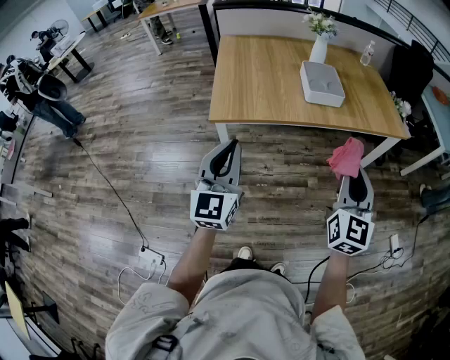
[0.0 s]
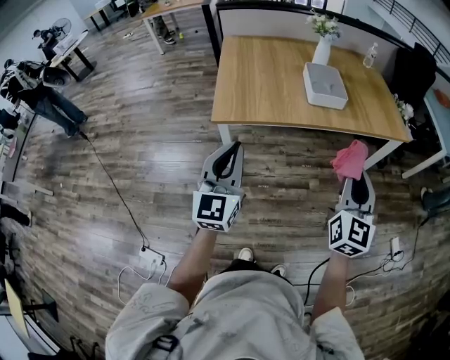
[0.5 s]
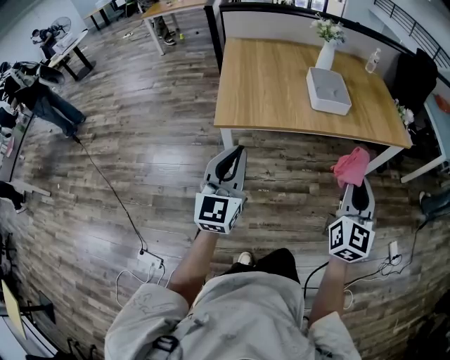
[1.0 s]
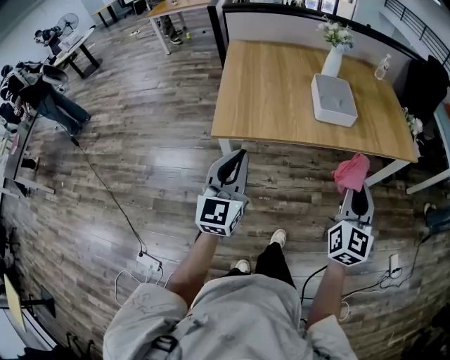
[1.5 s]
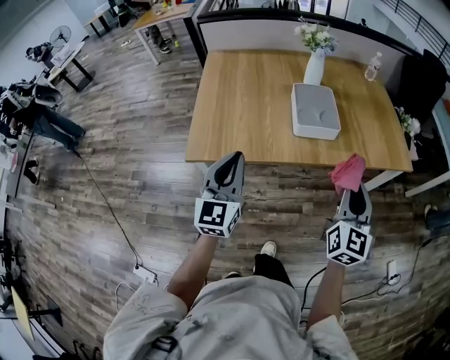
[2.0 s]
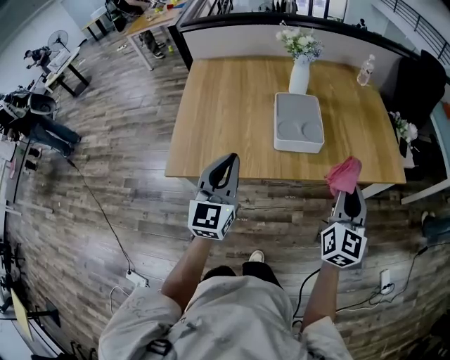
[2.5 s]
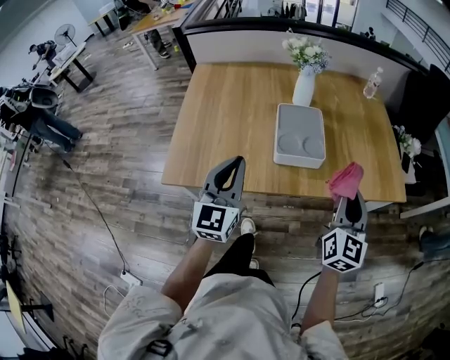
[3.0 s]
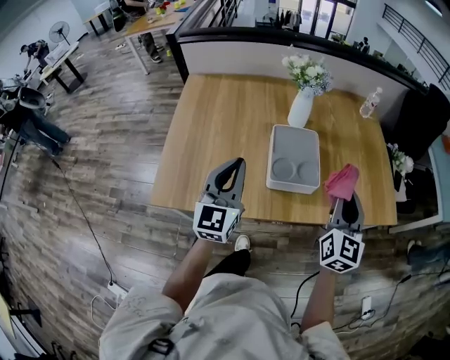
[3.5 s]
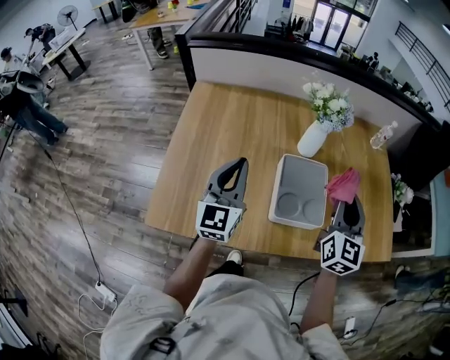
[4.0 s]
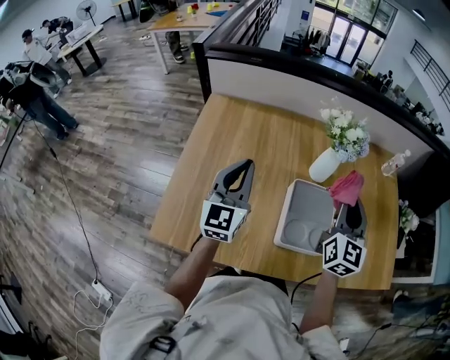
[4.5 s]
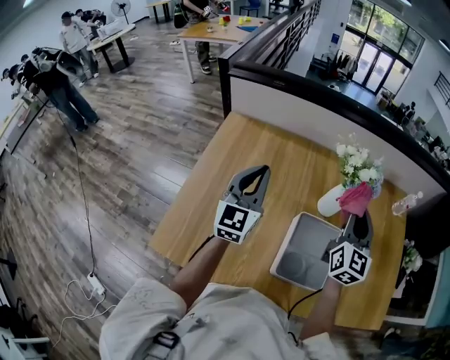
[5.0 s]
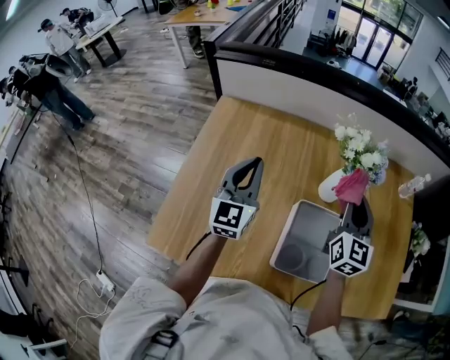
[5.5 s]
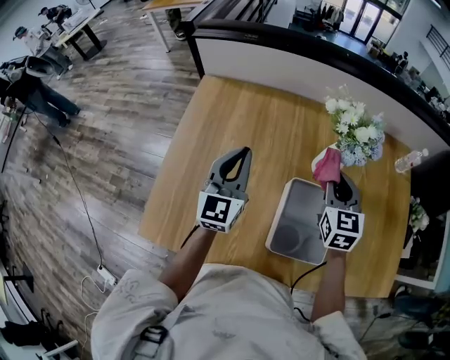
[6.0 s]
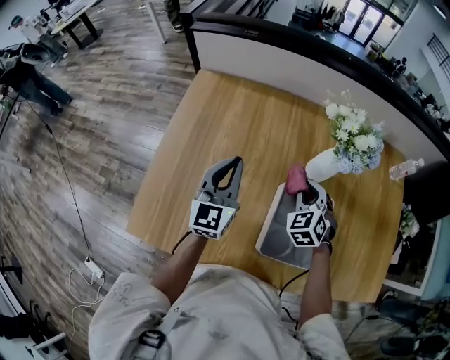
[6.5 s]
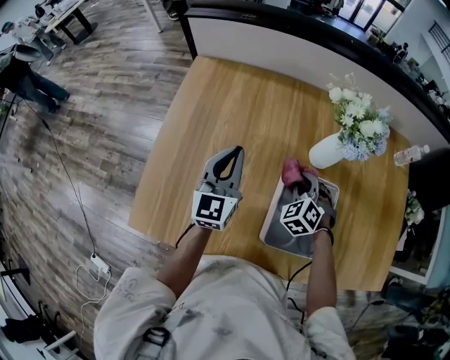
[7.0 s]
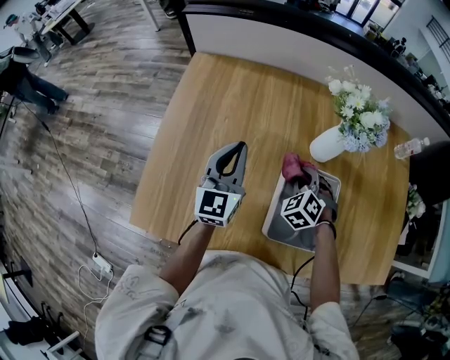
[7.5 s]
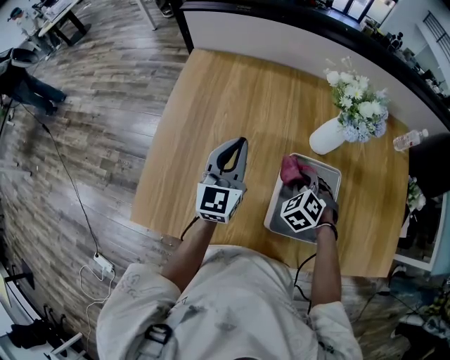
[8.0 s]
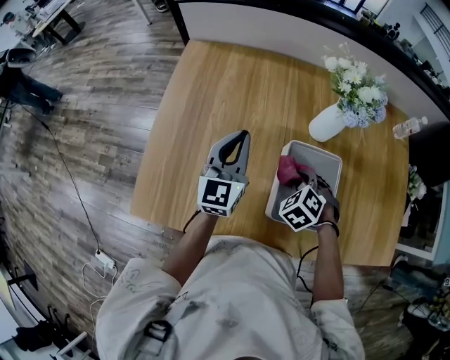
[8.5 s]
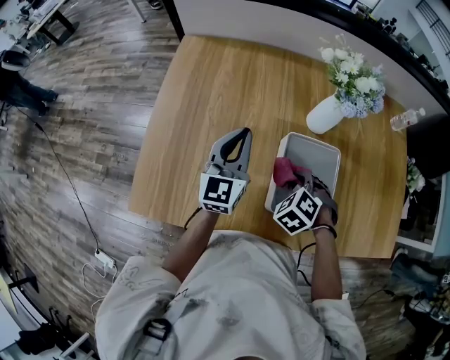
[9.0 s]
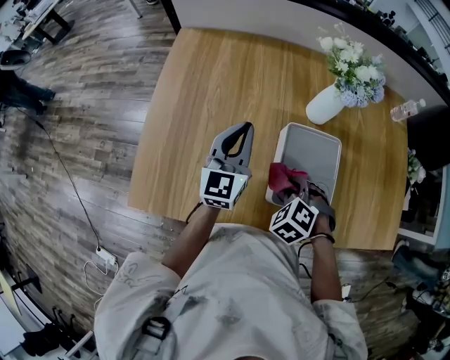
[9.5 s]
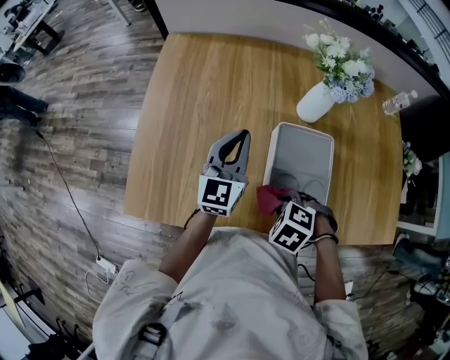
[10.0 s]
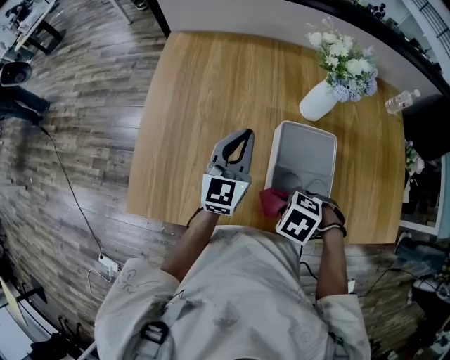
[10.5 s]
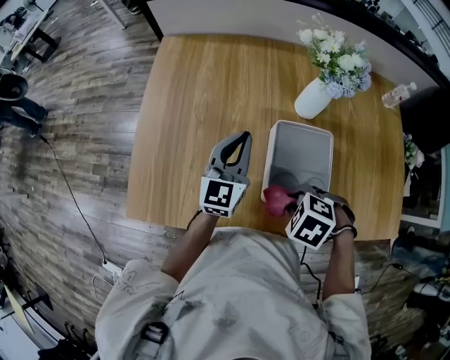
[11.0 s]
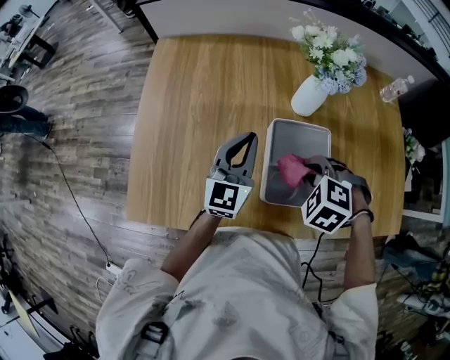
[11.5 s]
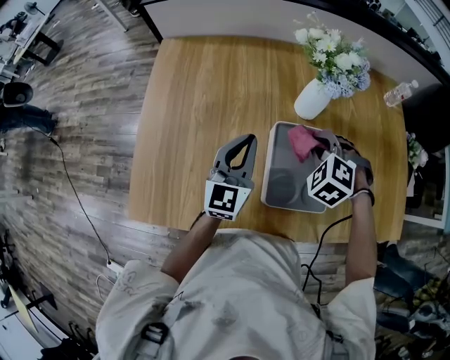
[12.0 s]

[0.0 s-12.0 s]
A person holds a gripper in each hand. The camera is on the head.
0.0 to 2.0 s: The grippers both shift forward by roughly 20 cm.
2.0 to 4.0 s: The grippers both shift forward by approximately 30 cm.
4.0 to 6.0 s: The left gripper heads forward, covering some 15 cm. The right gripper goes some 20 cm forward, downward and to the left, and swivels some 30 degrees.
6.0 to 8.0 s: The right gripper is displaced downward and backward by approximately 15 cm, and points its fingers approximately 30 degrees further downward. Meanwhile the left gripper changes place by some 5 cm.
8.0 to 10.0 s: The right gripper changes place by approximately 20 cm, and turns by about 30 degrees. The left gripper changes place by roughly 5 cm.
10.0 to 12.0 s: The right gripper ends up about 20 cm from where it was, and turns by some 30 degrees.

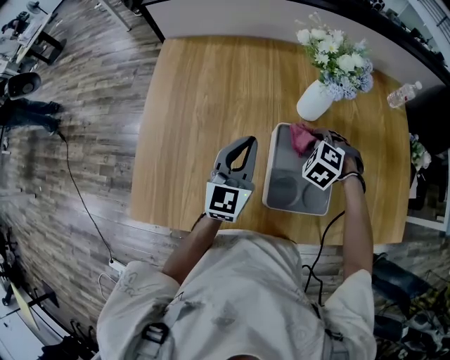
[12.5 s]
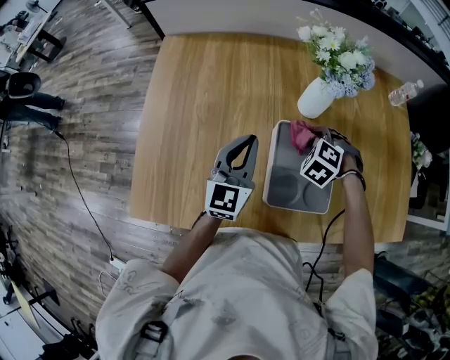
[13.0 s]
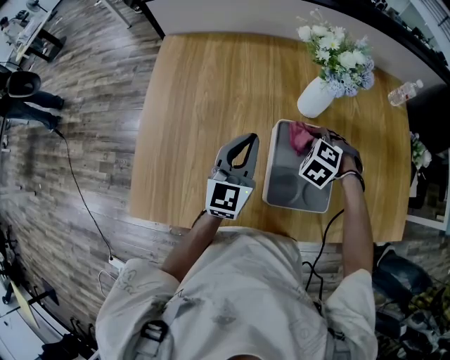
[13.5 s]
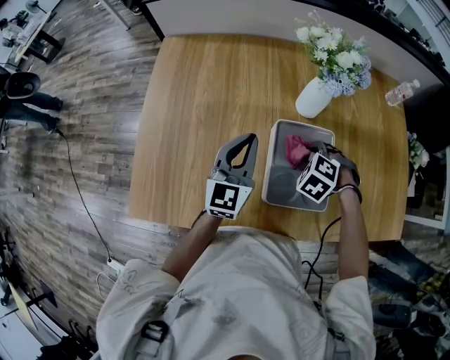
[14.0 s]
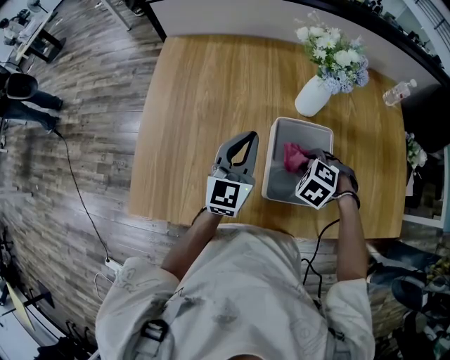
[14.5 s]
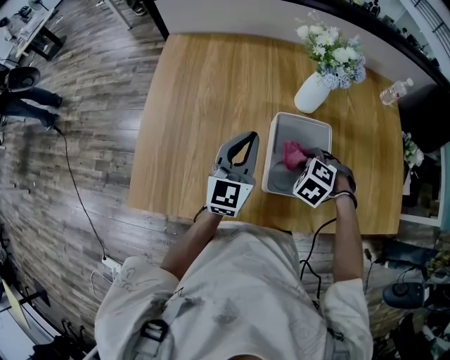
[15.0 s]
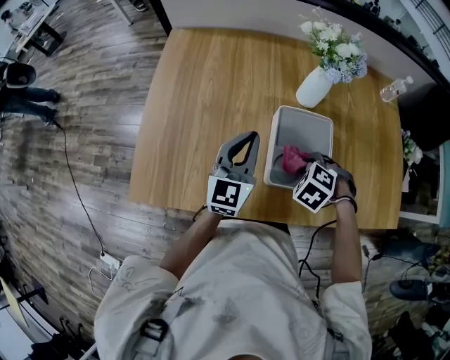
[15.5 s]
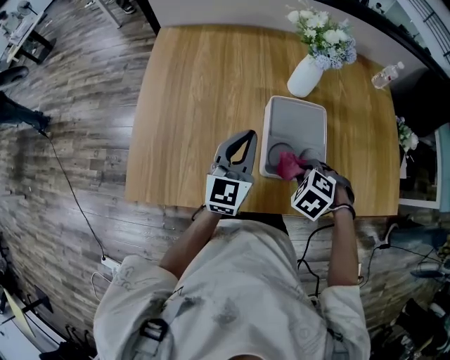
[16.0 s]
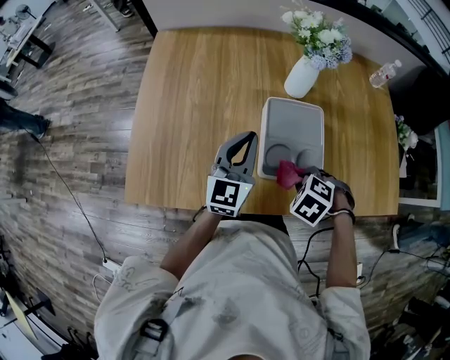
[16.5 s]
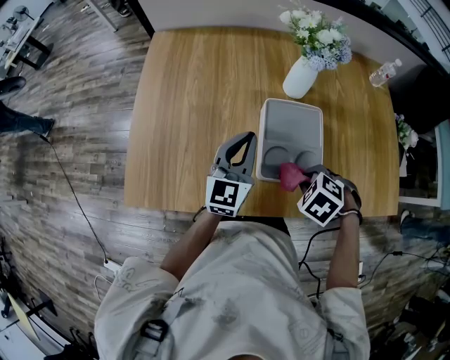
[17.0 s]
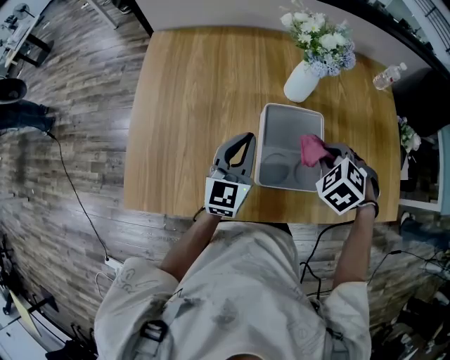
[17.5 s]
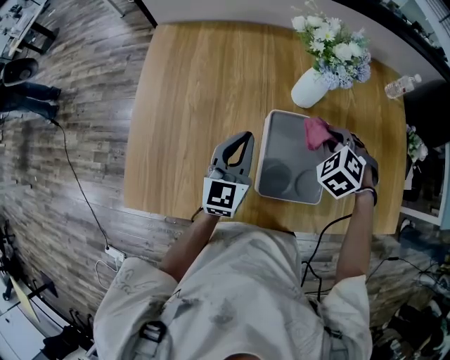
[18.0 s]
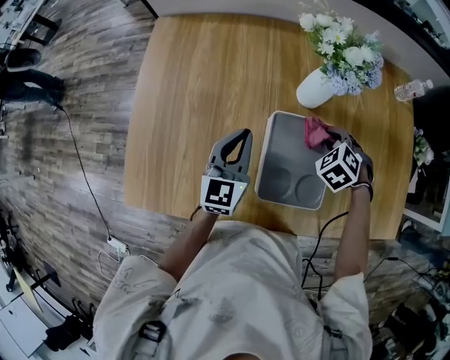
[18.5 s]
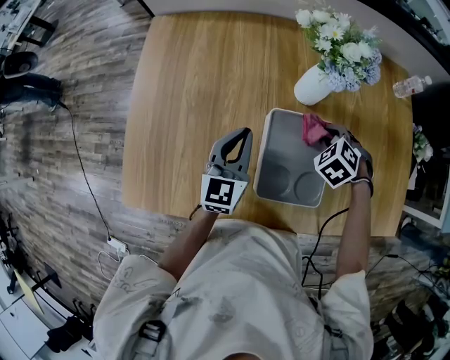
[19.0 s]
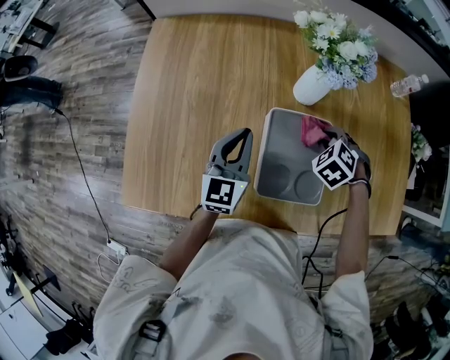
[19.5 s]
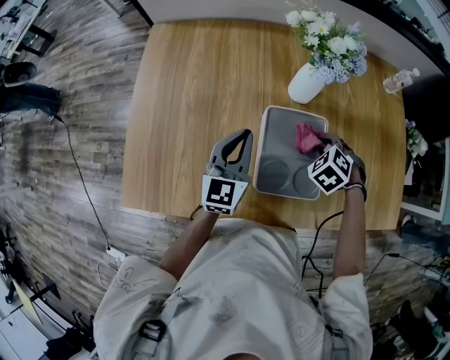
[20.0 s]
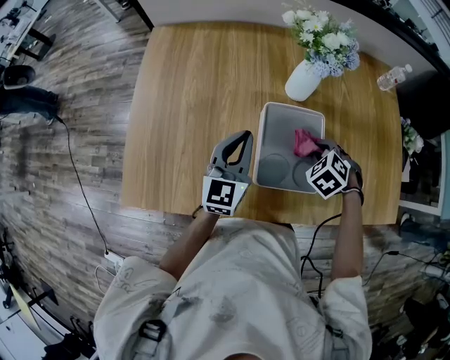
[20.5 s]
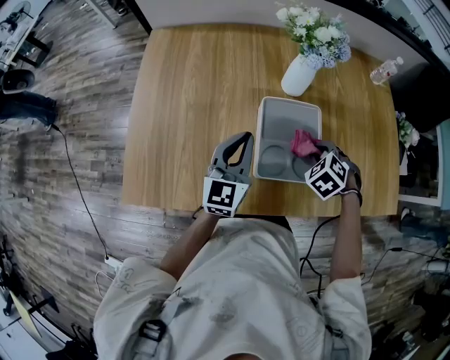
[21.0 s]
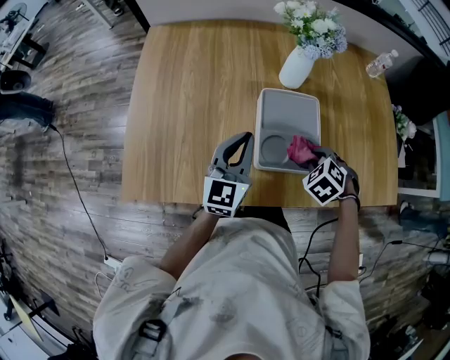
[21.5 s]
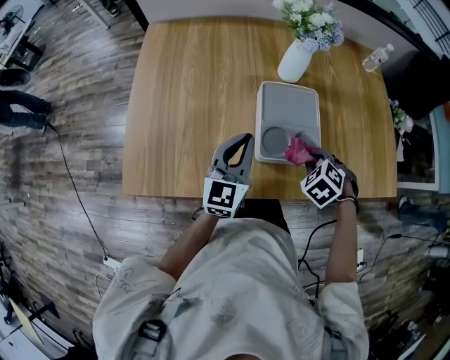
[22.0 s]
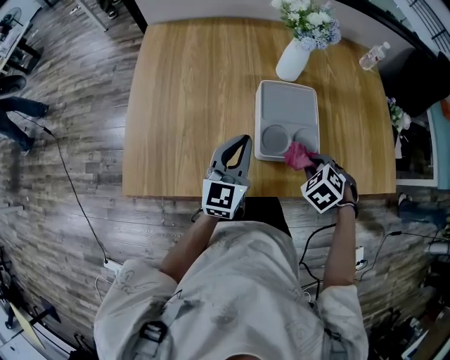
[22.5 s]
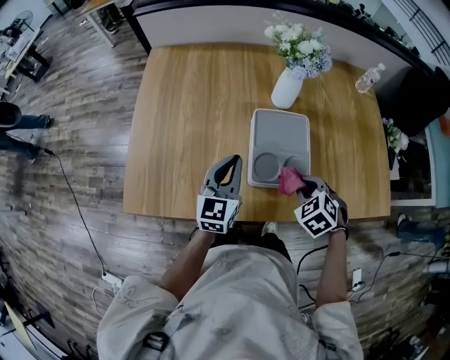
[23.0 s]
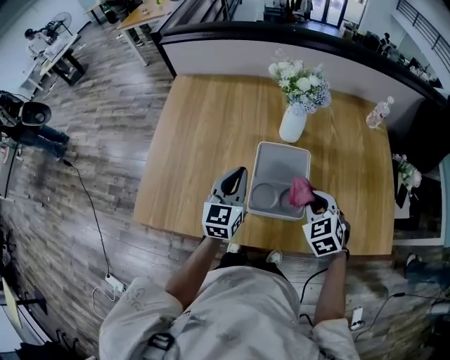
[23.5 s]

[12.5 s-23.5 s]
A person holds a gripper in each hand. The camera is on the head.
12.5 to 14.5 s: The right gripper travels backward by some 10 cm.
14.5 to 16.0 s: The right gripper moves some 10 cm; the left gripper changes place by about 5 cm.
16.0 to 18.0 s: The right gripper moves roughly 20 cm. The left gripper shifts by some 5 cm.
18.0 to 20.0 s: The right gripper moves downward, approximately 5 cm.
20.0 to 21.5 s: The right gripper travels backward by about 10 cm. The left gripper travels backward by approximately 5 cm.
21.5 to 23.5 s: The right gripper goes approximately 10 cm upward, moves approximately 5 cm backward and comes back, and turns by roughly 30 degrees.

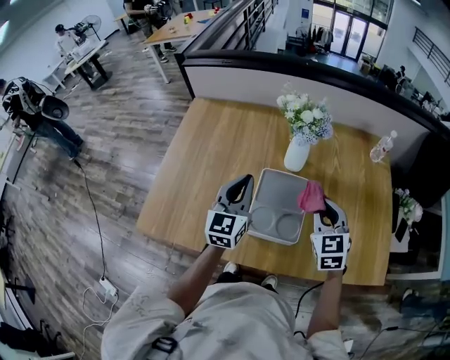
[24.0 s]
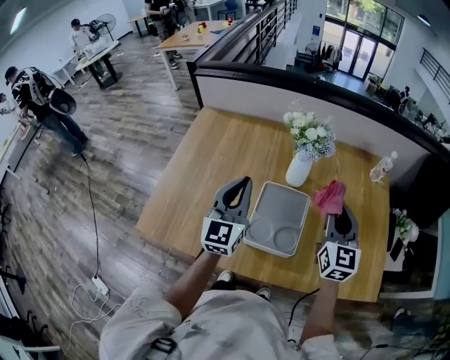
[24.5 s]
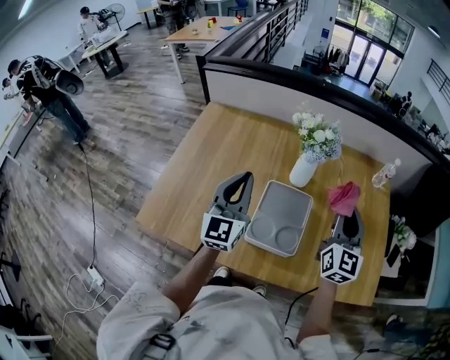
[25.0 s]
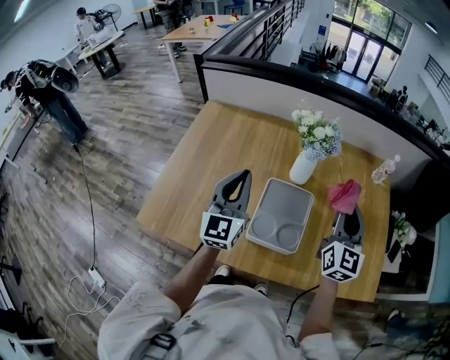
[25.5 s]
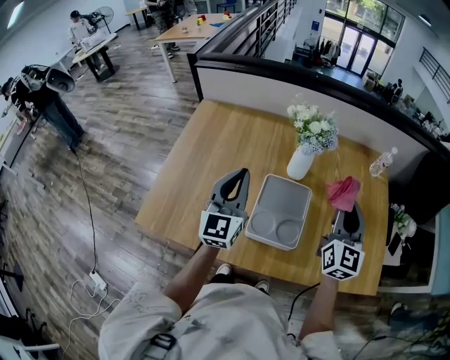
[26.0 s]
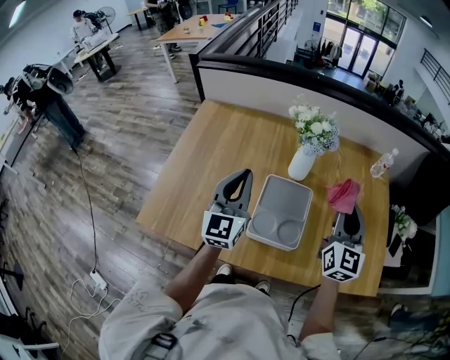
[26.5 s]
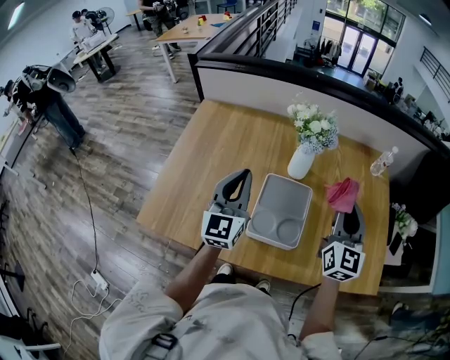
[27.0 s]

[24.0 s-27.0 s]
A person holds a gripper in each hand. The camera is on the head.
24.0 to 25.5 s: The grippers both shift upward by some 10 cm. The right gripper swivels approximately 30 degrees.
25.5 to 27.0 s: The grippers make only small movements.

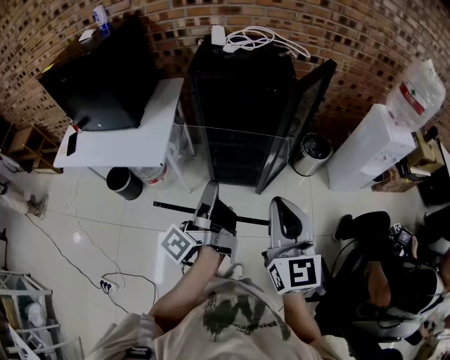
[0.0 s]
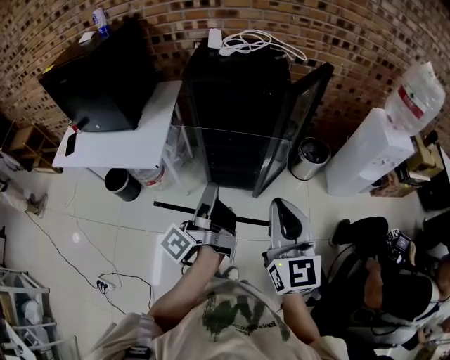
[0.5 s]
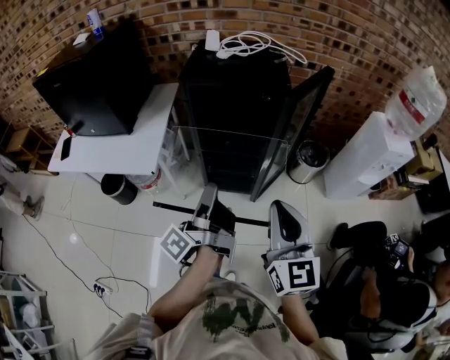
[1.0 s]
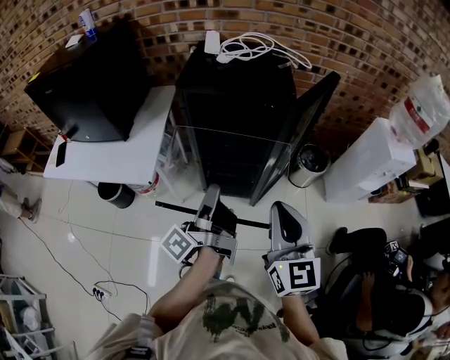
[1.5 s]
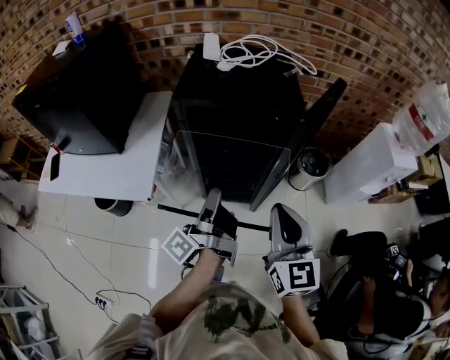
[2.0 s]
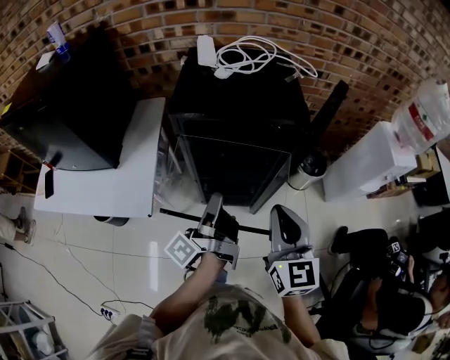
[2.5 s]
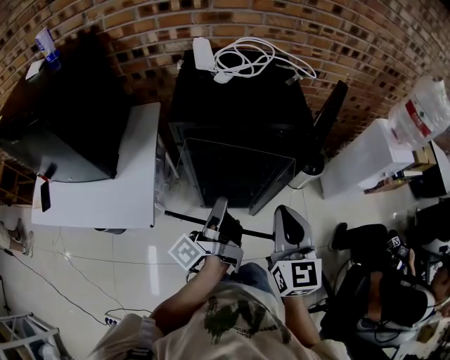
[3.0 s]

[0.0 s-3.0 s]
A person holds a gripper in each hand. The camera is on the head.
0.0 to 1.5 s: The right gripper moves roughly 10 cm.
1.5 to 3.0 s: The right gripper ends up about 15 cm from where it was.
